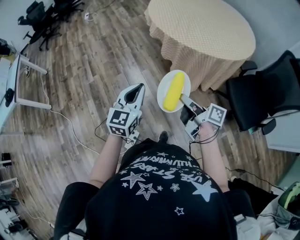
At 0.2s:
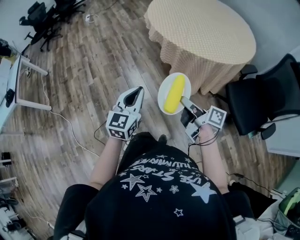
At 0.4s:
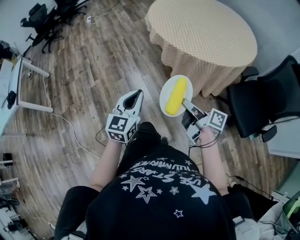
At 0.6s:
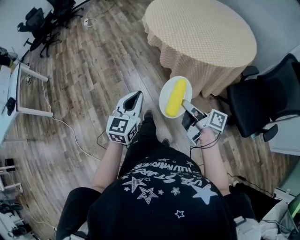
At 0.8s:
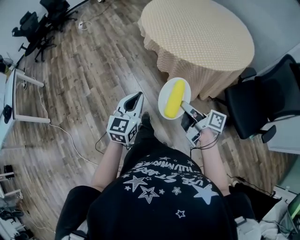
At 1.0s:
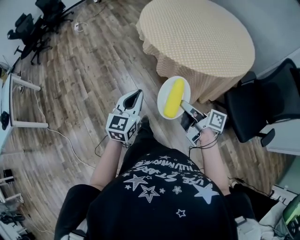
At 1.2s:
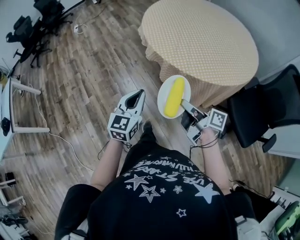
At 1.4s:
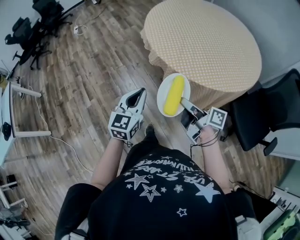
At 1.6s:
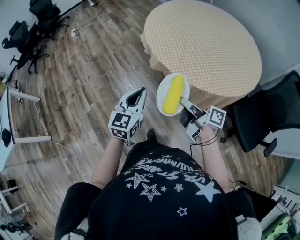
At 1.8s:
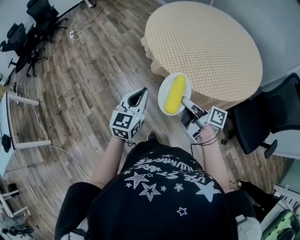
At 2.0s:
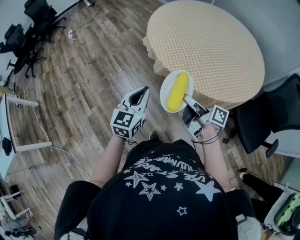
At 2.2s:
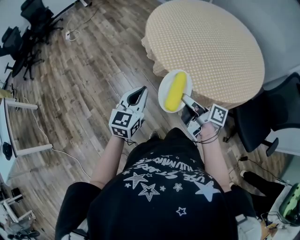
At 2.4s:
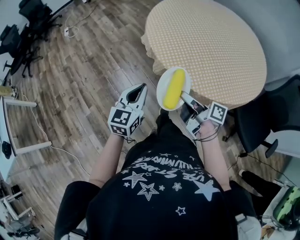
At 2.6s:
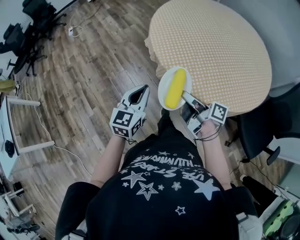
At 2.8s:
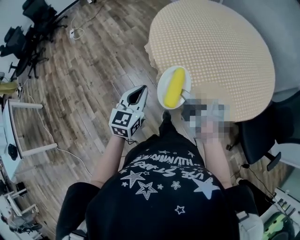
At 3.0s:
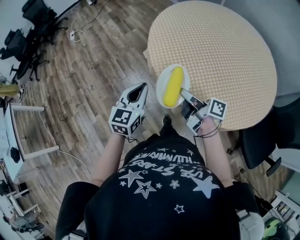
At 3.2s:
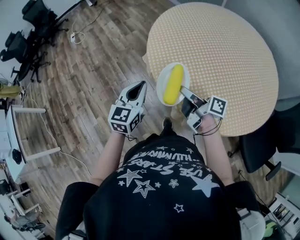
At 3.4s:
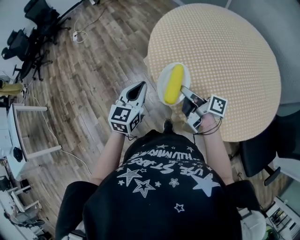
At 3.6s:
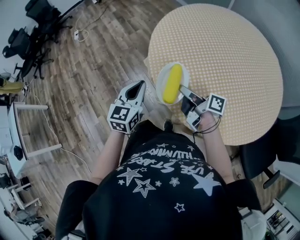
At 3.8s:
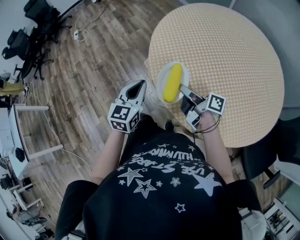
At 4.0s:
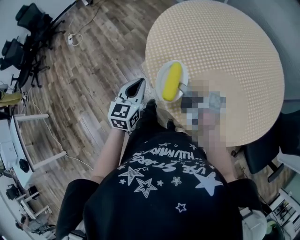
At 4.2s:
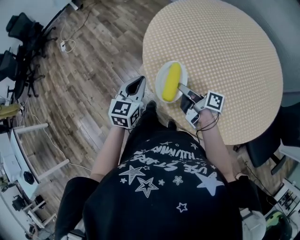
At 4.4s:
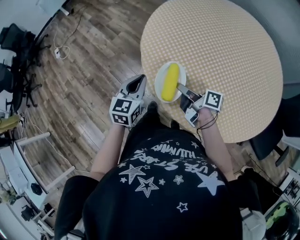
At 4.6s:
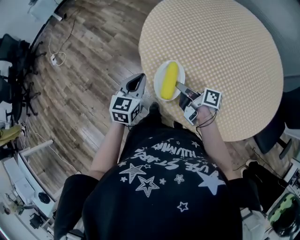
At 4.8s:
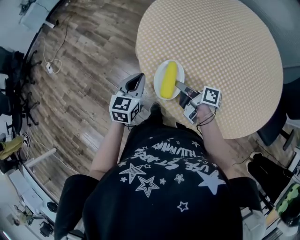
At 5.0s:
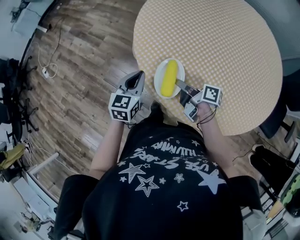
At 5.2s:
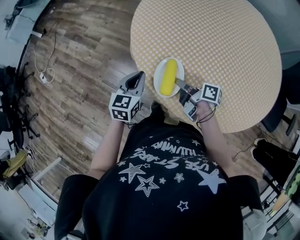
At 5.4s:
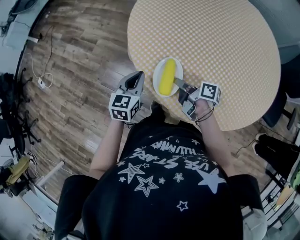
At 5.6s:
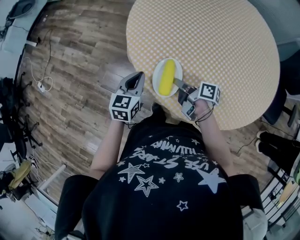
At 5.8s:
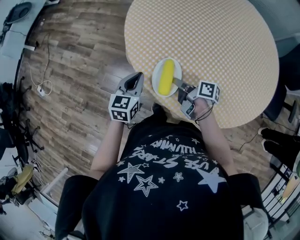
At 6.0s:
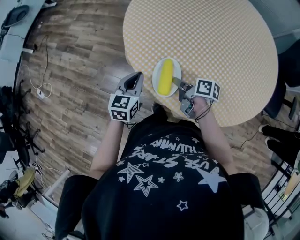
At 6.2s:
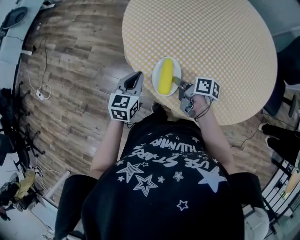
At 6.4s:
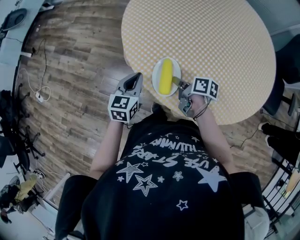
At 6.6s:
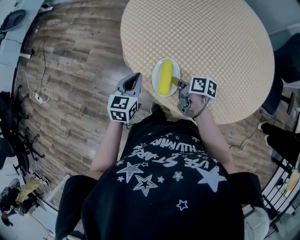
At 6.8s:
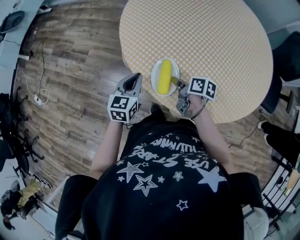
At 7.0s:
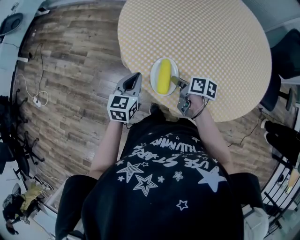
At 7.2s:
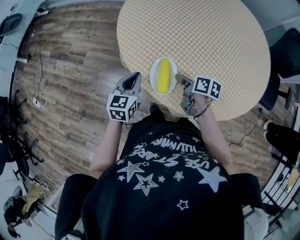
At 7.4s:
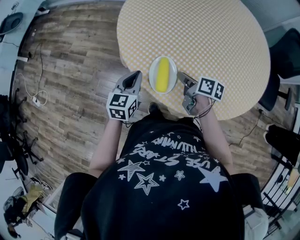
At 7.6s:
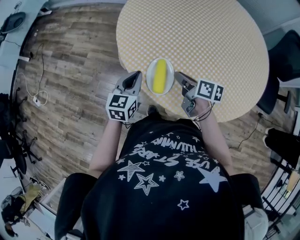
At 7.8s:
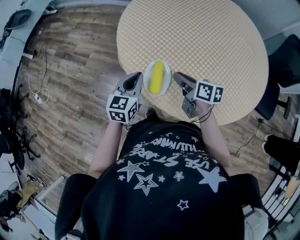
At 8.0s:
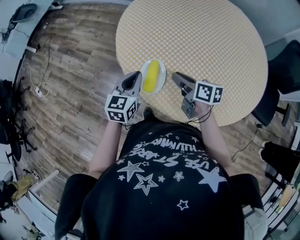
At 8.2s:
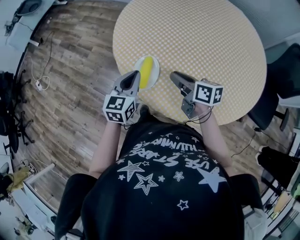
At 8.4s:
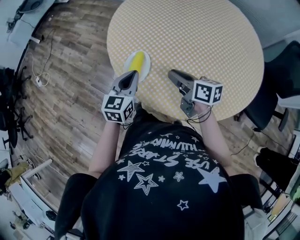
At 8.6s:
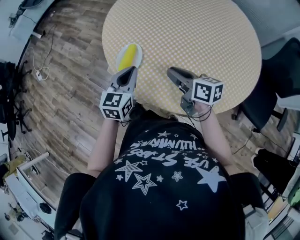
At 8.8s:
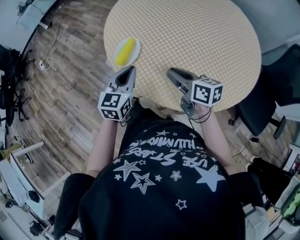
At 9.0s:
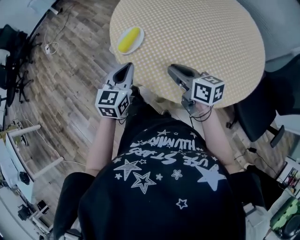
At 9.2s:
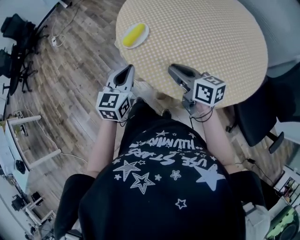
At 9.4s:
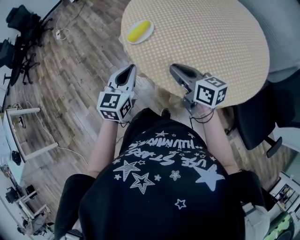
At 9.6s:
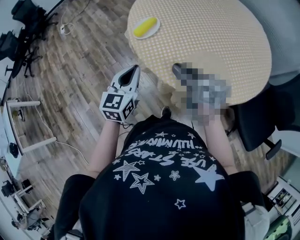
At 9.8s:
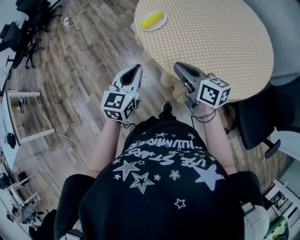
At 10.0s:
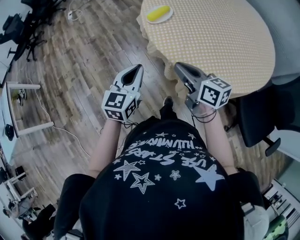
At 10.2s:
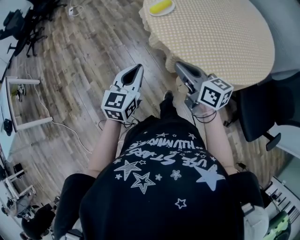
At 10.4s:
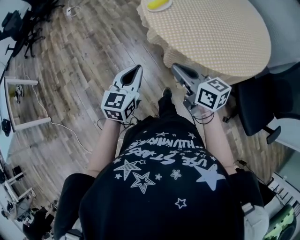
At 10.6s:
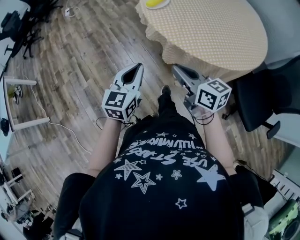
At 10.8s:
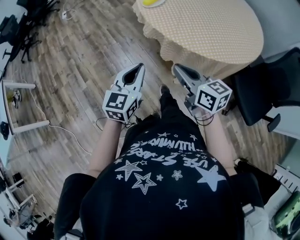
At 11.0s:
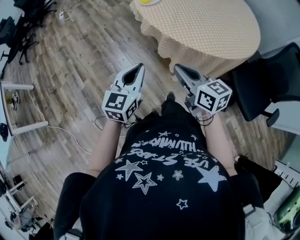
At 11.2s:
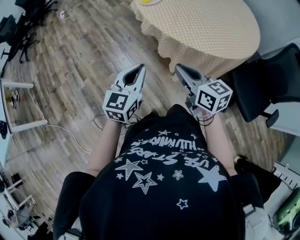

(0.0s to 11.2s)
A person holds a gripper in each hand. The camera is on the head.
0.0s - 1.6s: Both grippers move forward, some 30 cm.
1.6s - 3.2s: Both grippers move forward, approximately 30 cm.
3.2s - 4.8s: The right gripper shifts about 20 cm forward and downward, and swivels some 20 degrees. Meanwhile the left gripper moves forward, approximately 25 cm, and changes its angle by roughly 20 degrees.
4.8s - 6.4s: The left gripper changes place by approximately 5 cm. The right gripper swivels about 20 degrees.
6.4s - 8.0s: The right gripper goes approximately 10 cm upward and to the right, and turns by some 30 degrees; the left gripper is displaced to the right and upward by approximately 10 cm.
8.0s - 9.6s: The left gripper shifts by some 30 cm, and rotates about 30 degrees. Meanwhile the right gripper moves some 25 cm, and changes its angle by roughly 40 degrees.
9.6s - 11.2s: The grippers both shift backward by approximately 30 cm.

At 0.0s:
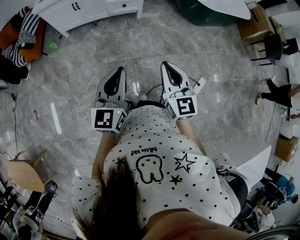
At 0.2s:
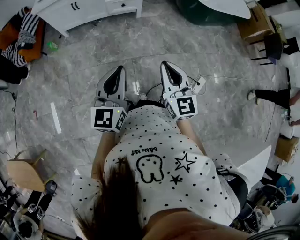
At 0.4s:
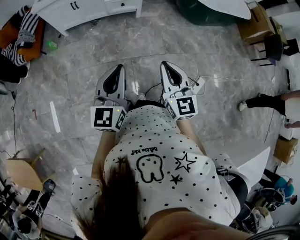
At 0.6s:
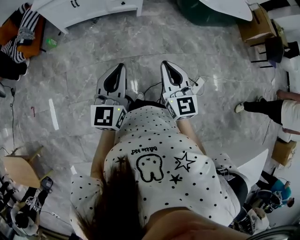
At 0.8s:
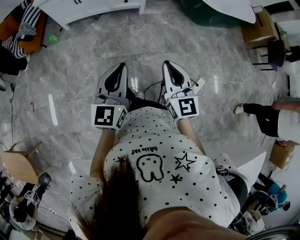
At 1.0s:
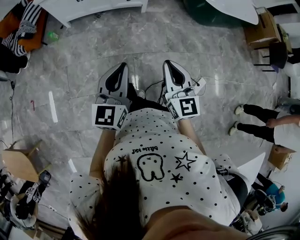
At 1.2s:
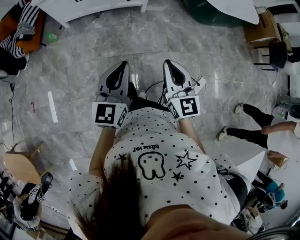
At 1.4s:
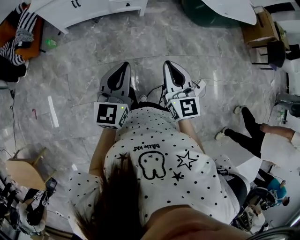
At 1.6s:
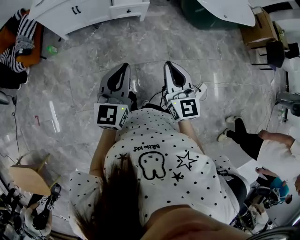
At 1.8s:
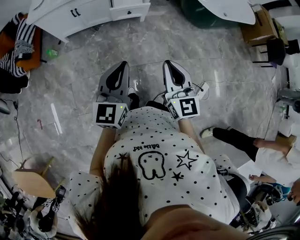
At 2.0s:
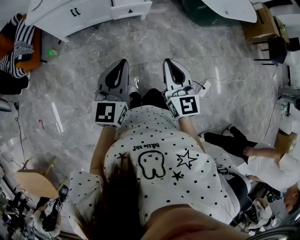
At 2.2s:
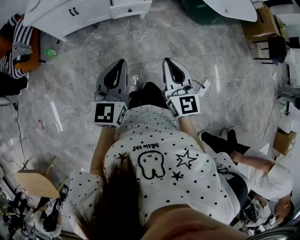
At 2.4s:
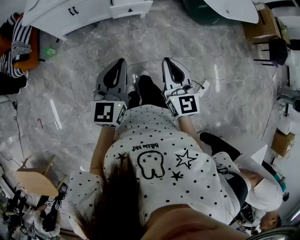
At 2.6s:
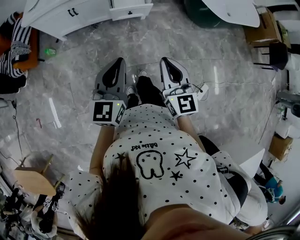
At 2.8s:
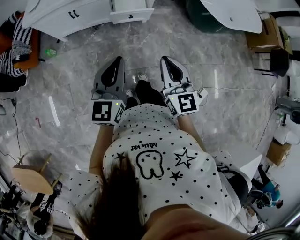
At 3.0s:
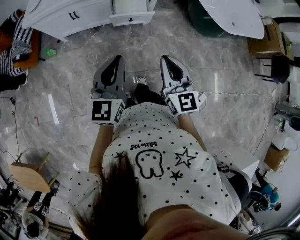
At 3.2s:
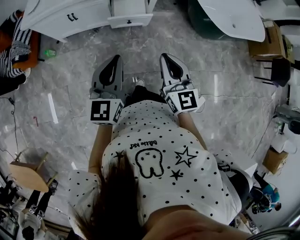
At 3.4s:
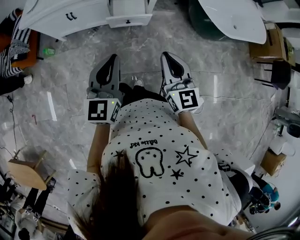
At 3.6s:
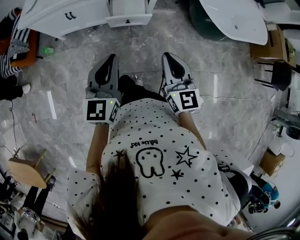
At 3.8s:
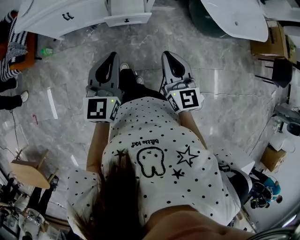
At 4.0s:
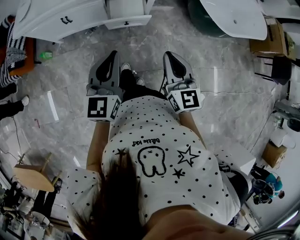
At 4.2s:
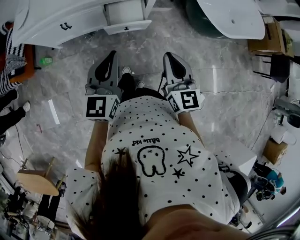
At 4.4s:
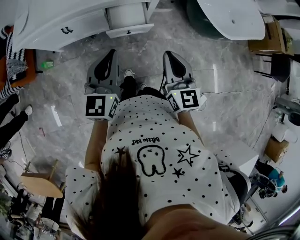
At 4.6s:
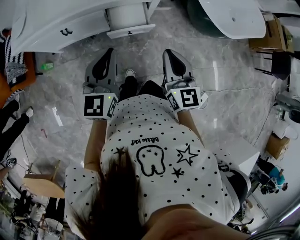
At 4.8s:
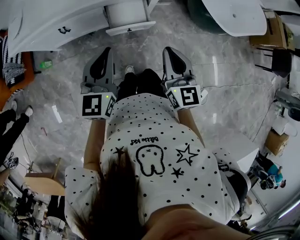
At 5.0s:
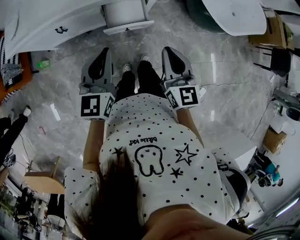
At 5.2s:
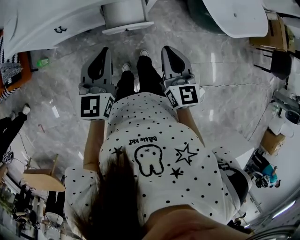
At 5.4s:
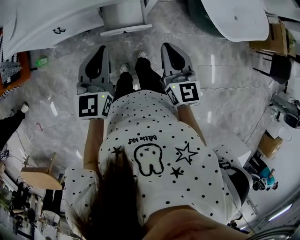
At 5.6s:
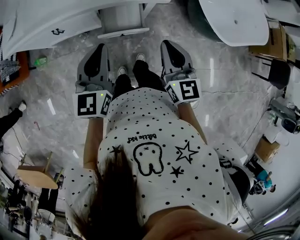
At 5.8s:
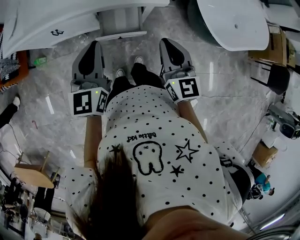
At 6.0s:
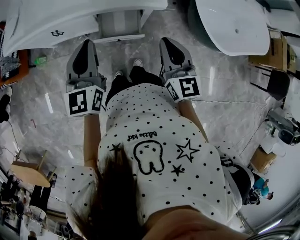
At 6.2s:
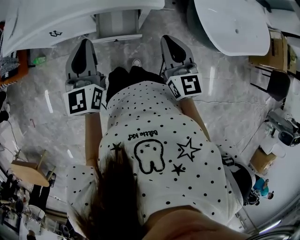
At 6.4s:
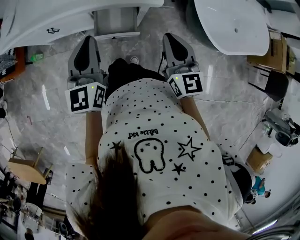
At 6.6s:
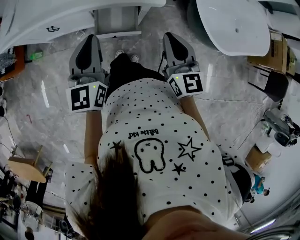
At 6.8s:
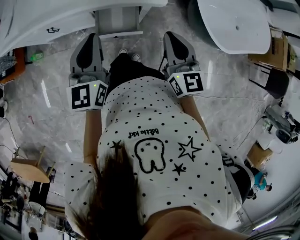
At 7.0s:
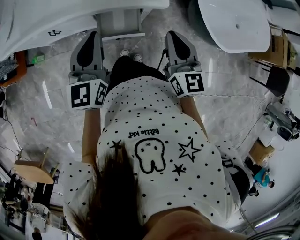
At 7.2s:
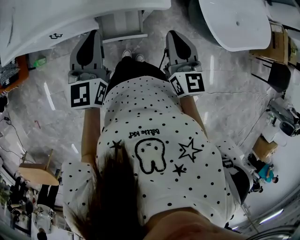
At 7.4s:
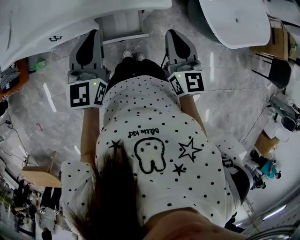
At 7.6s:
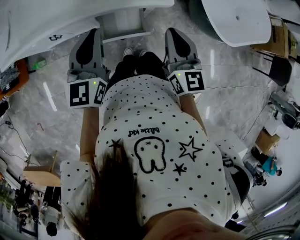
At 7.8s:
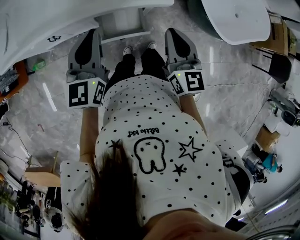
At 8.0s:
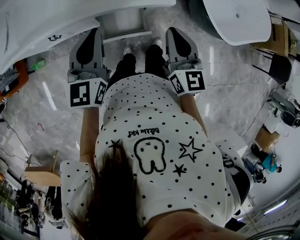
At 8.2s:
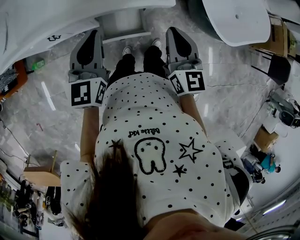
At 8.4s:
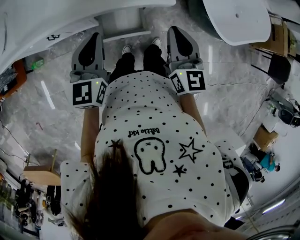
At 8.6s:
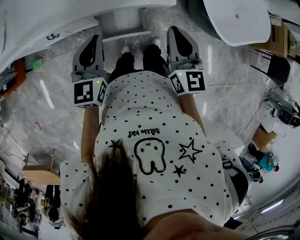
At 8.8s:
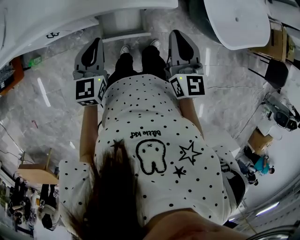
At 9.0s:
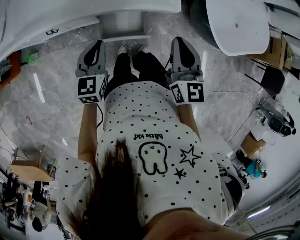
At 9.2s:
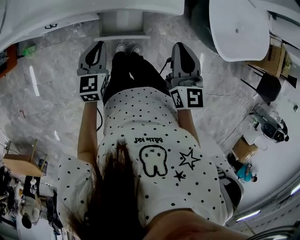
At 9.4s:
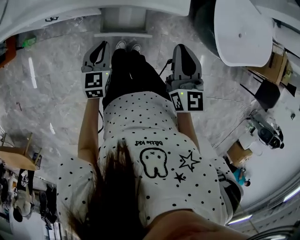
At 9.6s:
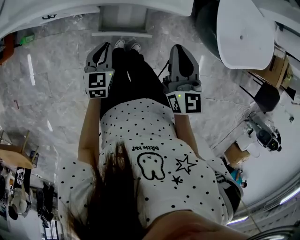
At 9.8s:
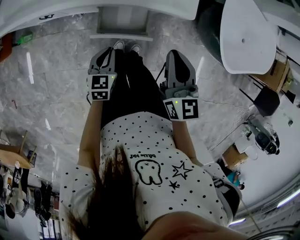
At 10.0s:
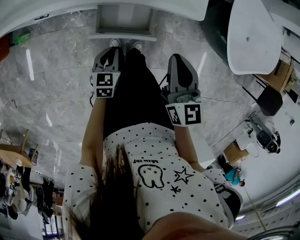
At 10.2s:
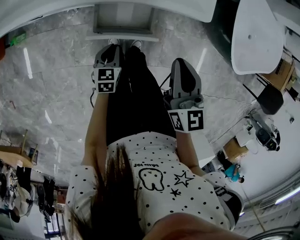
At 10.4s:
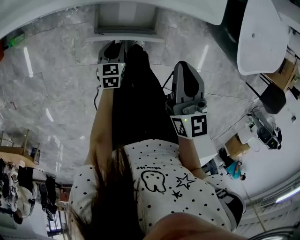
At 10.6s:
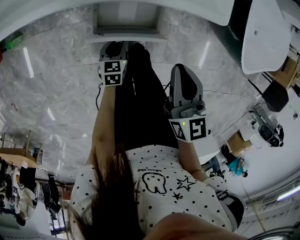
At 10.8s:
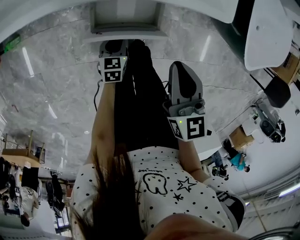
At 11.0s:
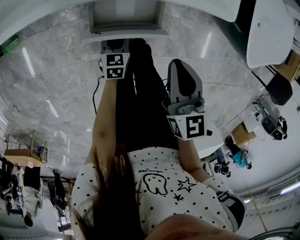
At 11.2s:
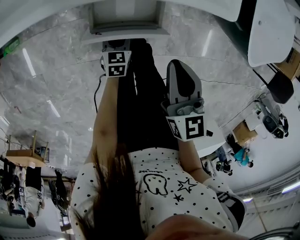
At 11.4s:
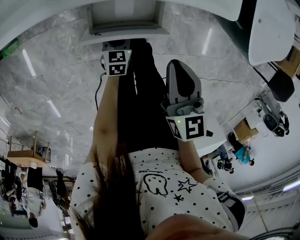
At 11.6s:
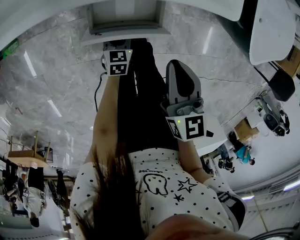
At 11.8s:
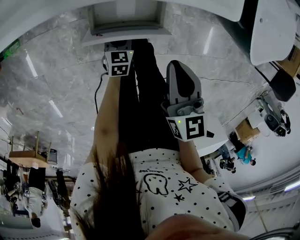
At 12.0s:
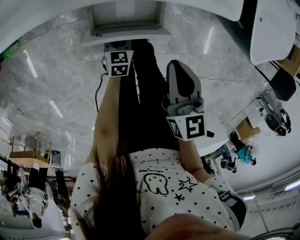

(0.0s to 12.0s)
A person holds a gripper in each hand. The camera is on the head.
0.0s - 1.6s: Both grippers travel together forward, about 15 cm.
1.6s - 3.0s: The grippers both shift forward by about 20 cm.
3.0s - 4.4s: The two grippers go approximately 15 cm forward.
4.4s - 6.0s: Both grippers travel together forward, roughly 15 cm.
6.0s - 7.6s: Both grippers move forward, some 5 cm.
7.6s - 9.0s: The left gripper shifts about 15 cm downward.
9.0s - 10.4s: The right gripper moves downward, roughly 15 cm, while the left gripper shifts approximately 35 cm downward, turns by roughly 30 degrees, and opens its fingers.
10.4s - 12.0s: Both grippers travel together downward, some 5 cm.

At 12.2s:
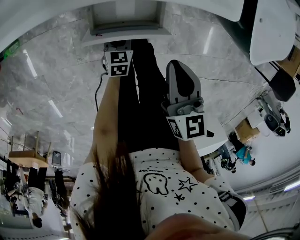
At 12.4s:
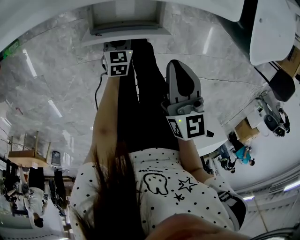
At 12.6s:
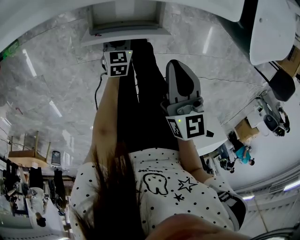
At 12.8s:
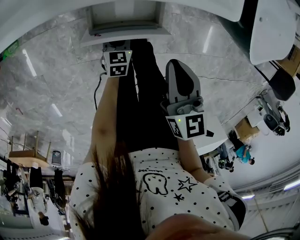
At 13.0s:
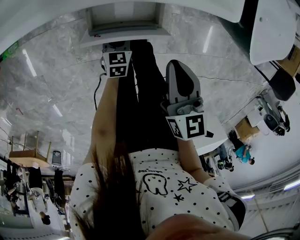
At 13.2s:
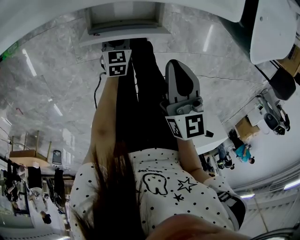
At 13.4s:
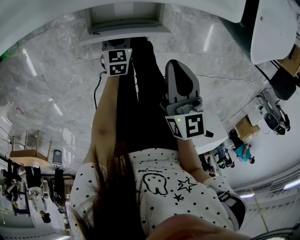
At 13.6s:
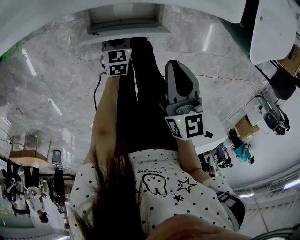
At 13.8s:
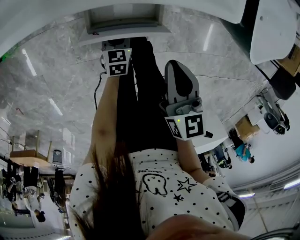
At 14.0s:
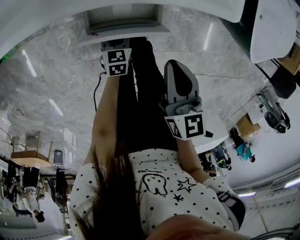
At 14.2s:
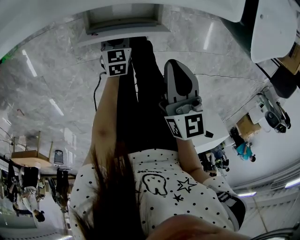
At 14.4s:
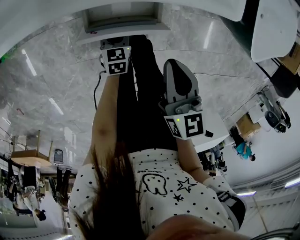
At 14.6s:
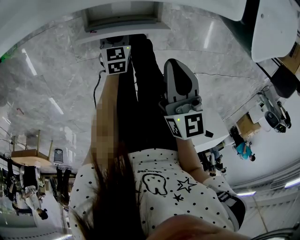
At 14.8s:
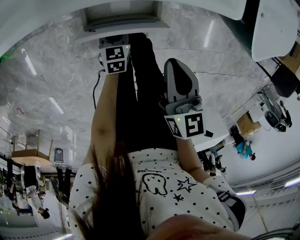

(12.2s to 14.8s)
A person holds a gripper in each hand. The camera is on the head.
12.2s - 13.4s: Both grippers stay put.
13.4s - 14.8s: Both grippers stay put.
